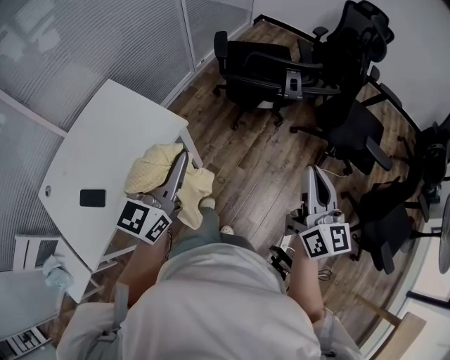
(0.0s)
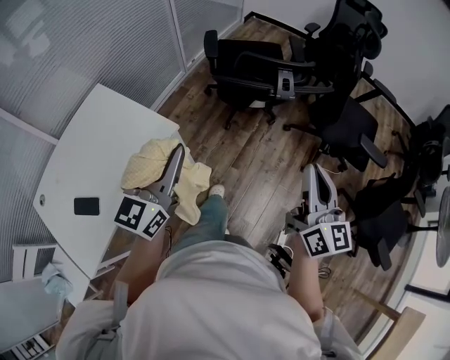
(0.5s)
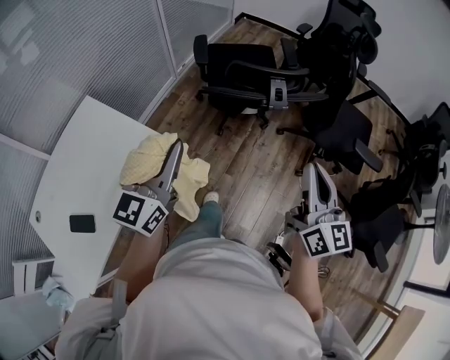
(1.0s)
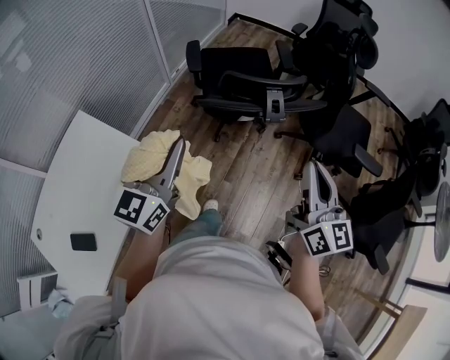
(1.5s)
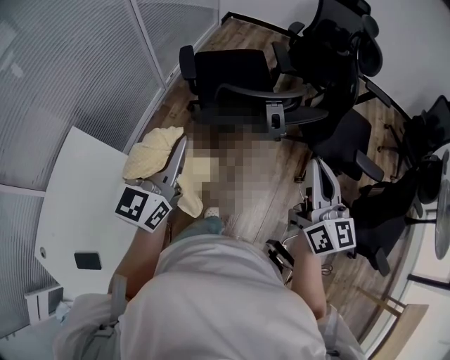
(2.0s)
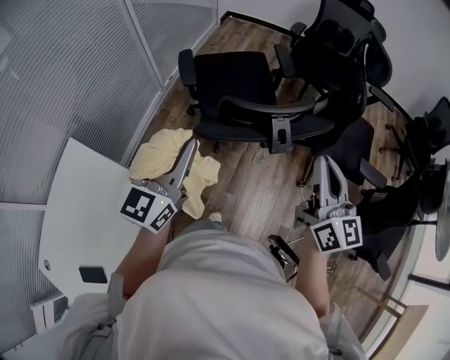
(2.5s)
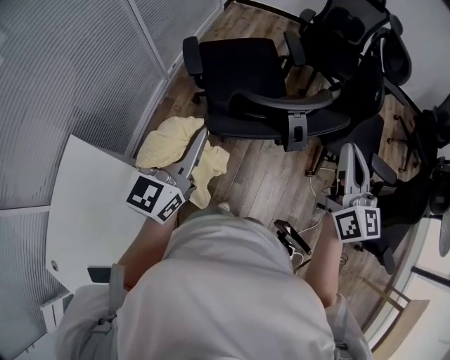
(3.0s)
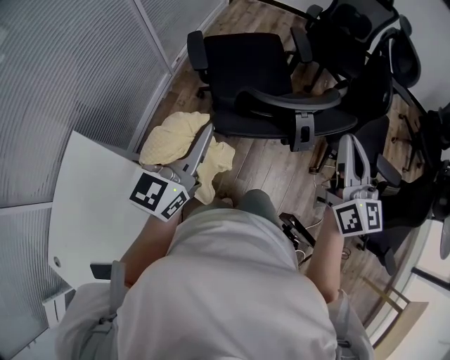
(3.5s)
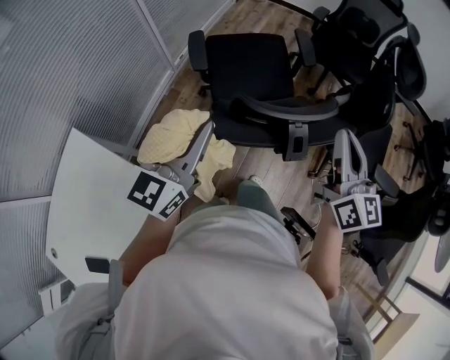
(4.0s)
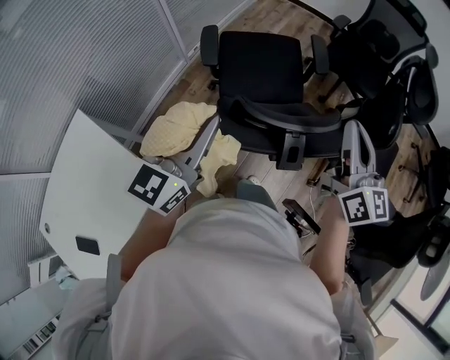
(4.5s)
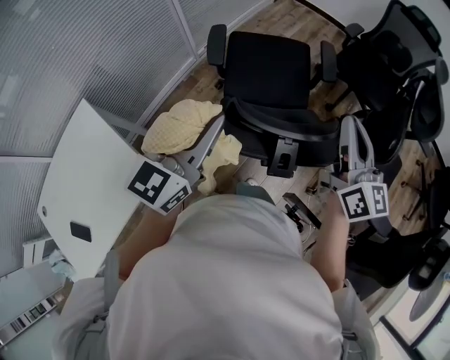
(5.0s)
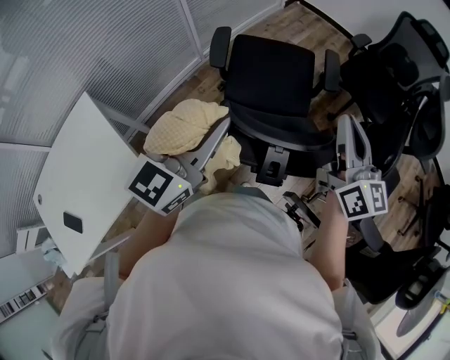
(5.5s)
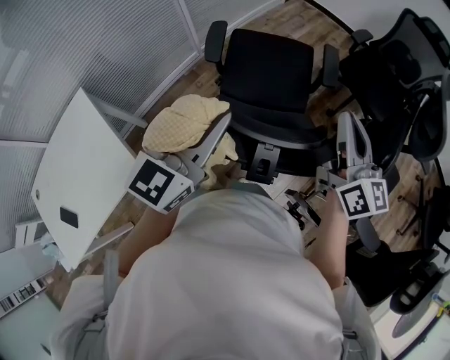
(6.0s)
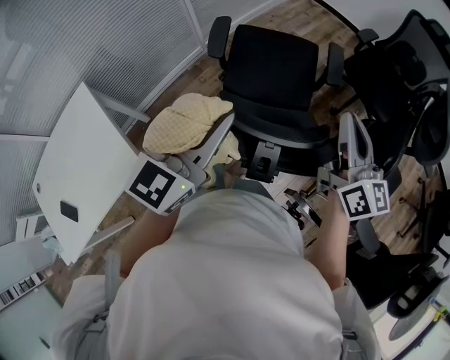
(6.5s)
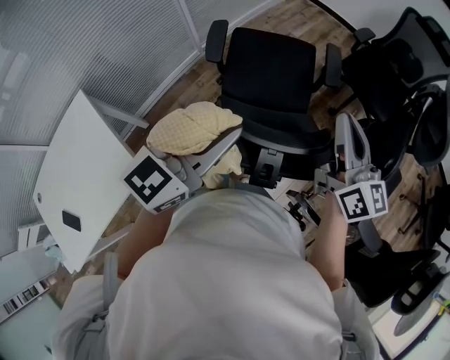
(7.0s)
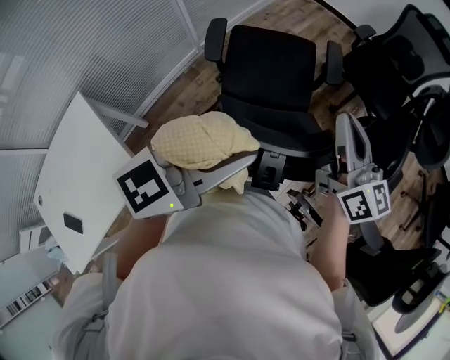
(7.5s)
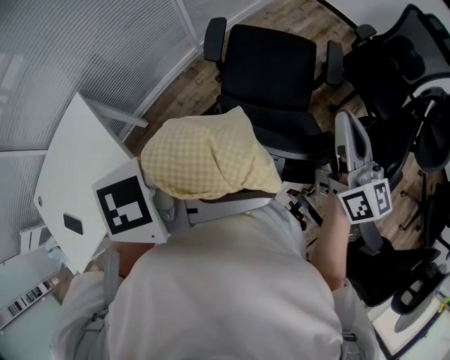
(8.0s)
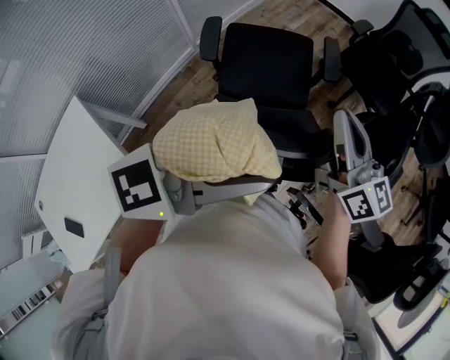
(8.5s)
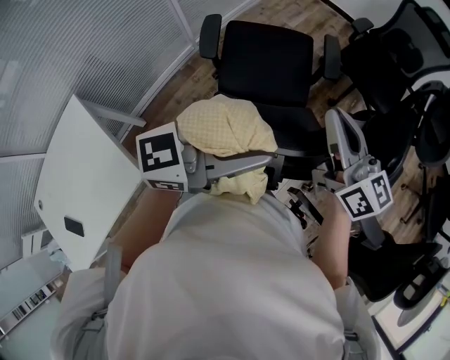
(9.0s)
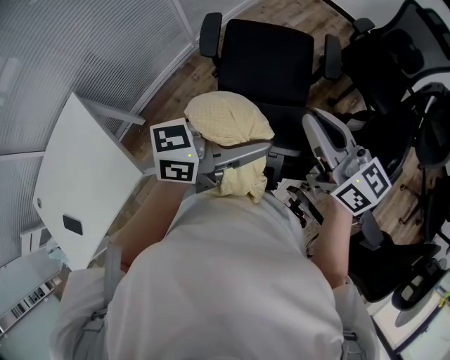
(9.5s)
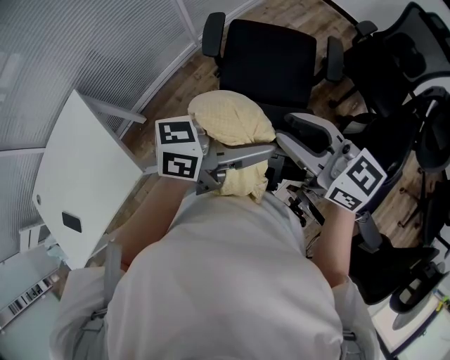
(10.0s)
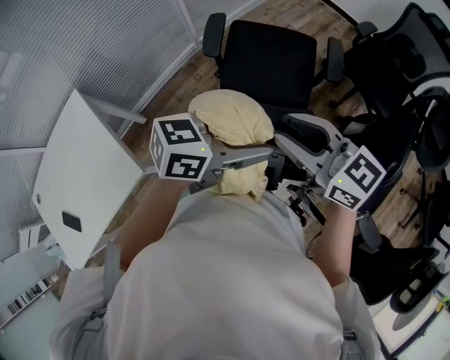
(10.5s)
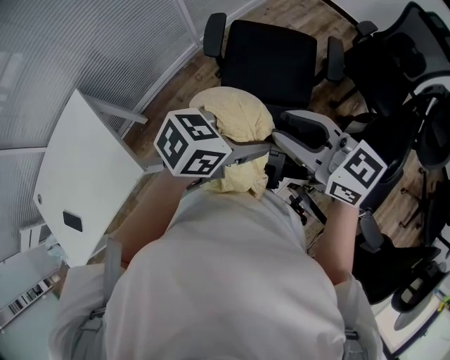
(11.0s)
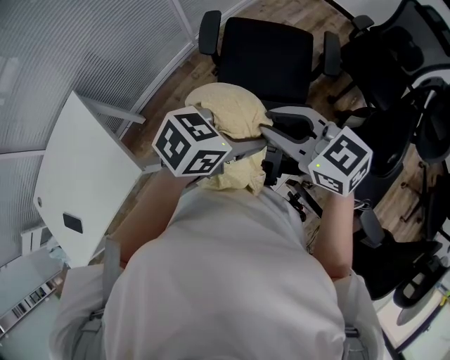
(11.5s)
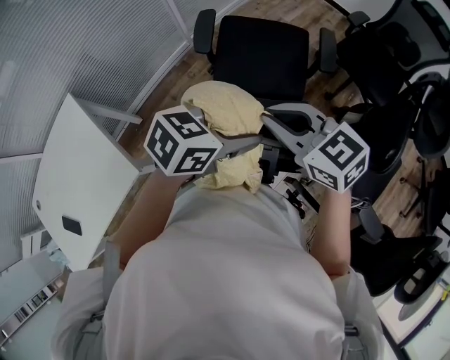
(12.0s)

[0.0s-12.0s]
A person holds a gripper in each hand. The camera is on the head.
0.0s to 2.0s: Both grippers move forward, about 25 cm.
2.0s to 4.0s: The grippers both shift forward by roughly 15 cm.
4.0s to 6.0s: The right gripper is displaced forward by some 15 cm, and rotates roughly 20 degrees. The left gripper heads to the right and forward, covering some 15 cm.
6.0s to 8.0s: The left gripper is displaced to the right, upward and backward by roughly 15 cm, and swivels about 40 degrees.
8.0s to 10.0s: The left gripper travels downward by roughly 15 cm, and changes its angle by about 40 degrees; the right gripper moves approximately 15 cm, rotates approximately 40 degrees, and opens its fingers.
10.0s to 12.0s: The left gripper goes some 5 cm downward, points its fingers approximately 30 degrees further downward, and opens; the right gripper closes up.

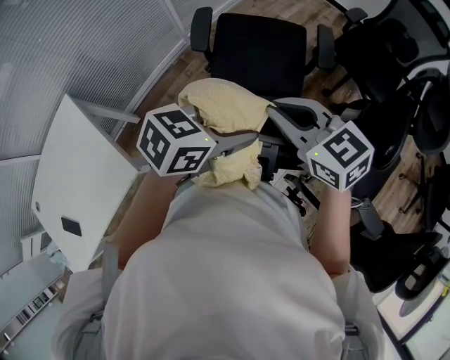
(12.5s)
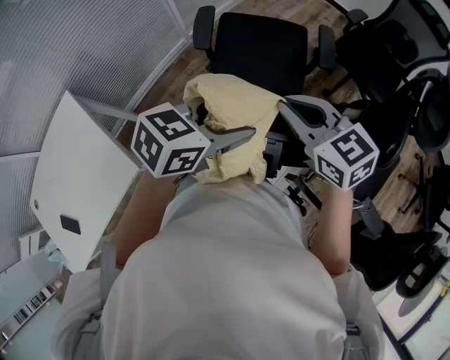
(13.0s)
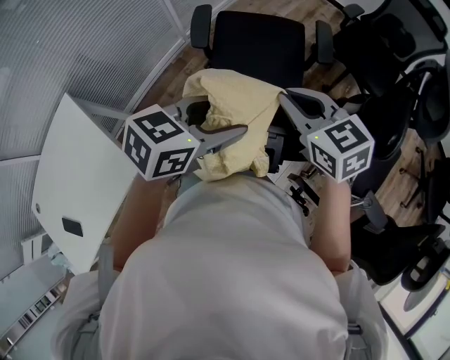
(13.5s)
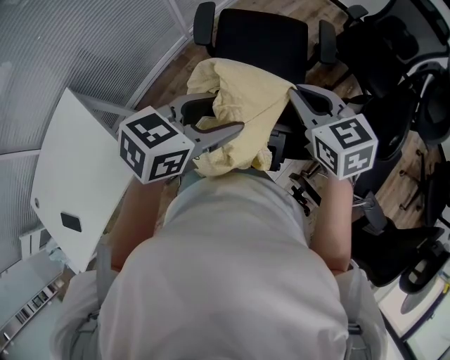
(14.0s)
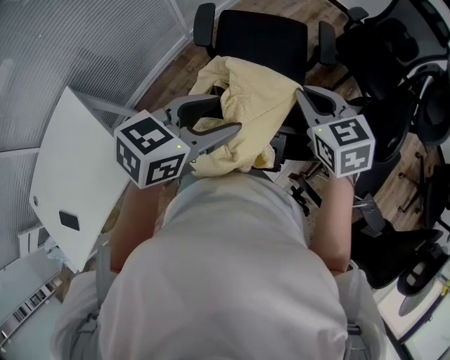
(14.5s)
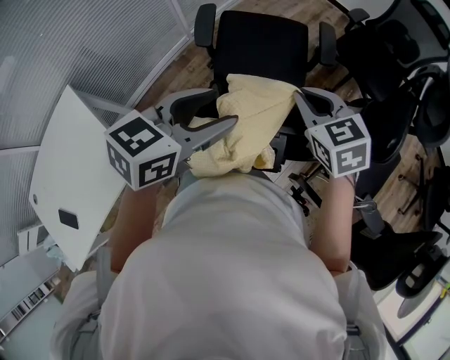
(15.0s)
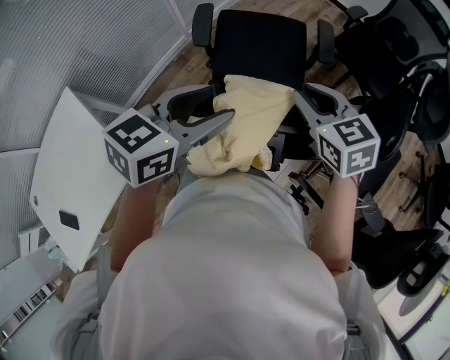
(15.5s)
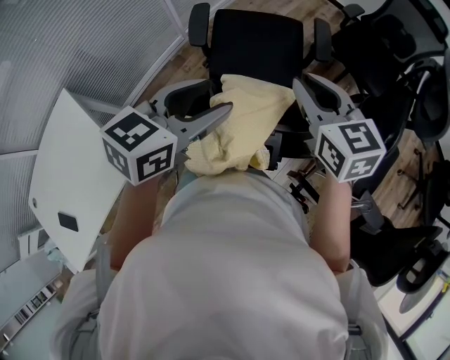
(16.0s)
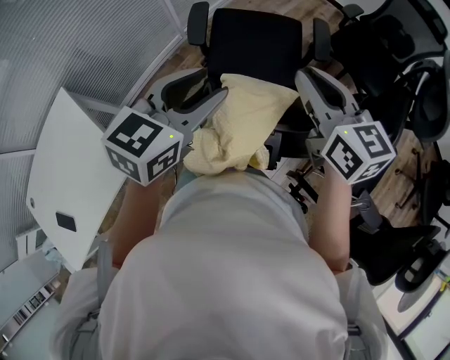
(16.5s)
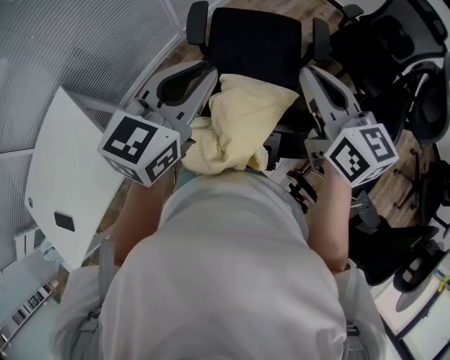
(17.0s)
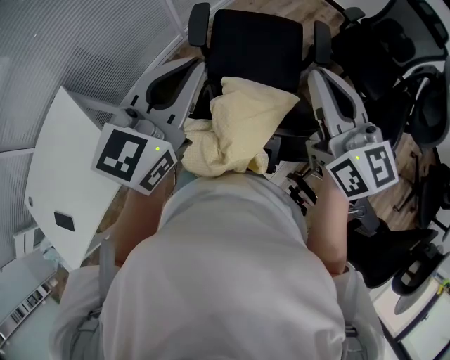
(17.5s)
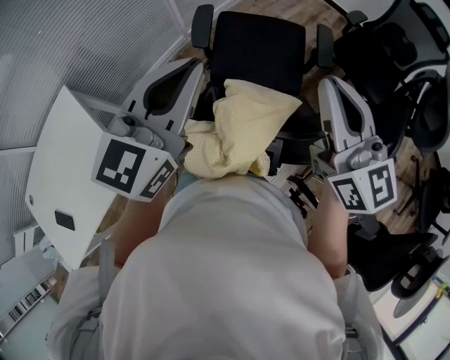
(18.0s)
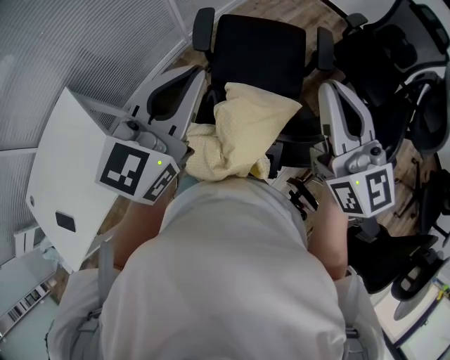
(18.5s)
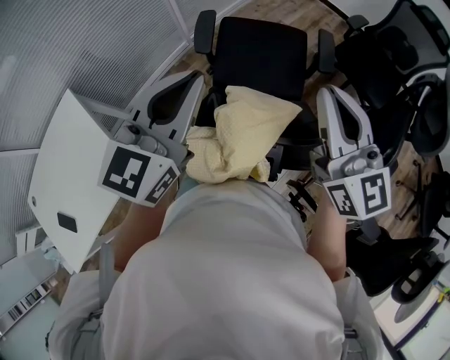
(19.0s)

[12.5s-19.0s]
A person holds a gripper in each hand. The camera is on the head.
12.5s to 14.5s: The right gripper shifts by about 5 cm, and rotates some 20 degrees. The left gripper moves roughly 5 cm.
14.5s to 17.0s: The left gripper is displaced upward and forward by approximately 10 cm, rotates roughly 30 degrees, and closes its fingers; the right gripper shifts roughly 10 cm upward, and turns by approximately 30 degrees.
17.0s to 19.0s: The right gripper shifts some 5 cm upward, and changes its angle by about 20 degrees.

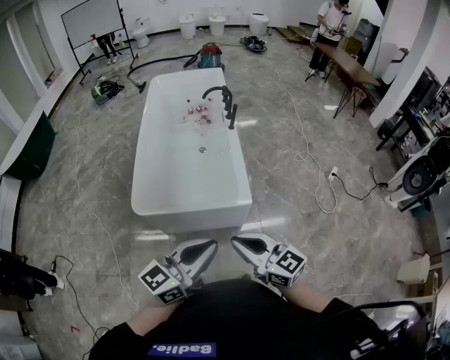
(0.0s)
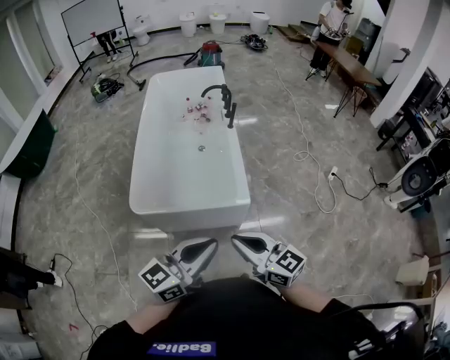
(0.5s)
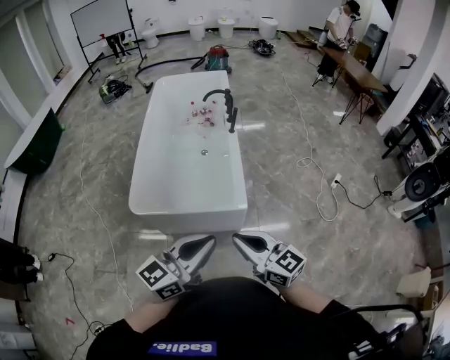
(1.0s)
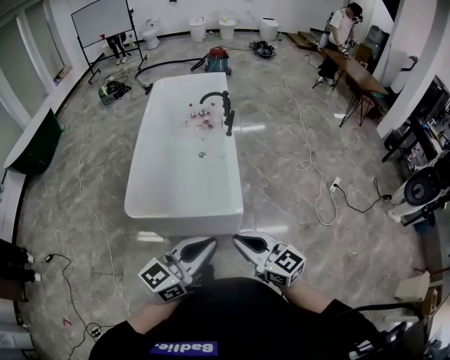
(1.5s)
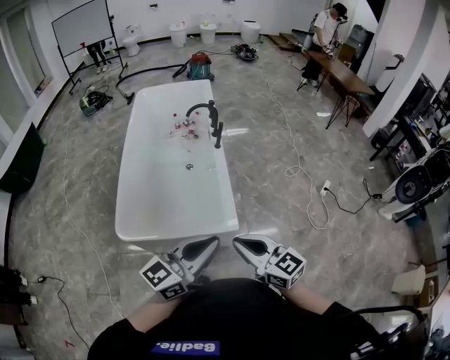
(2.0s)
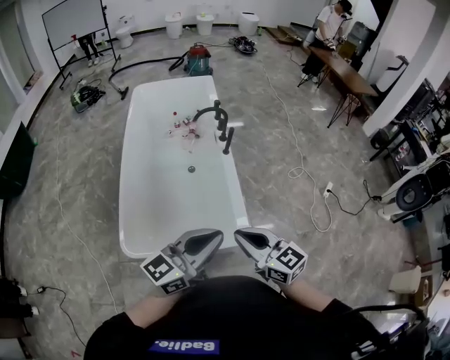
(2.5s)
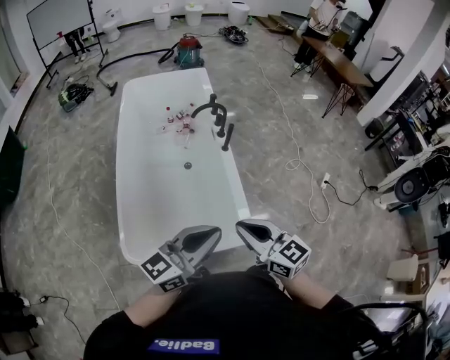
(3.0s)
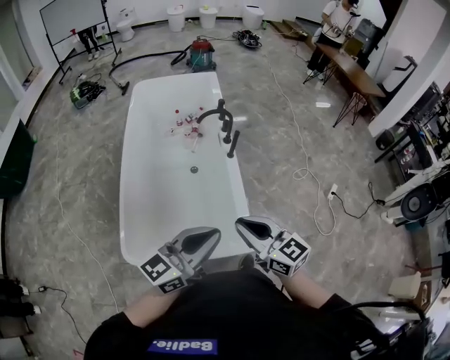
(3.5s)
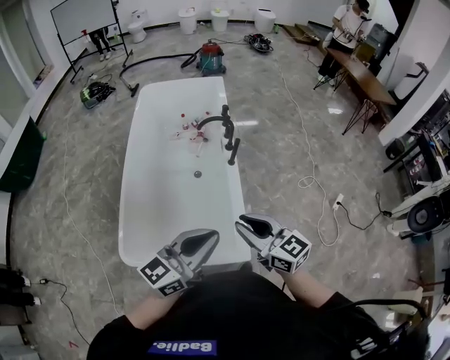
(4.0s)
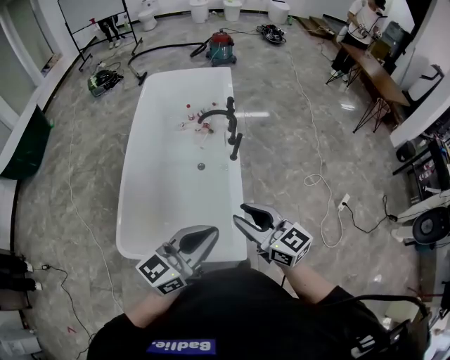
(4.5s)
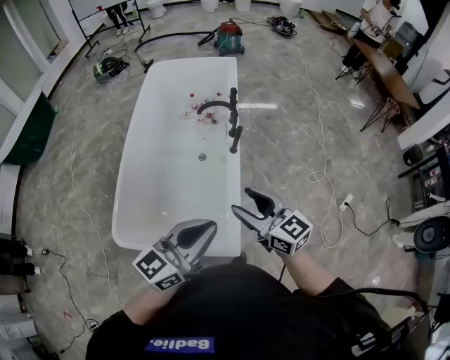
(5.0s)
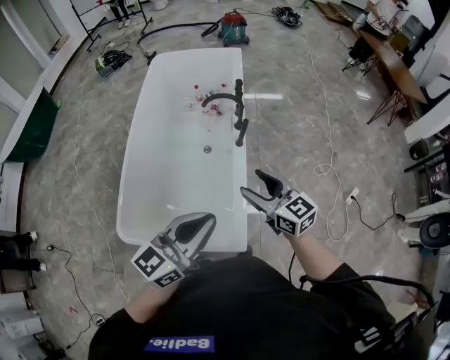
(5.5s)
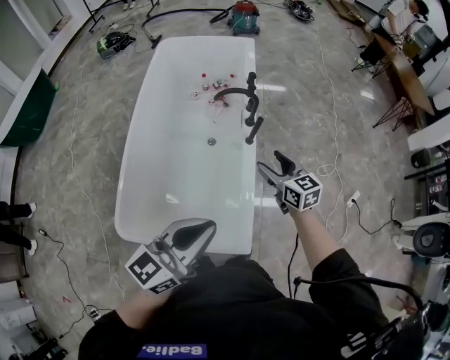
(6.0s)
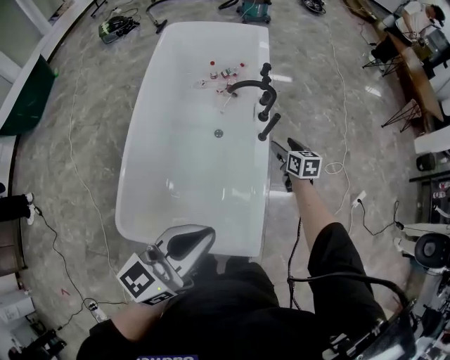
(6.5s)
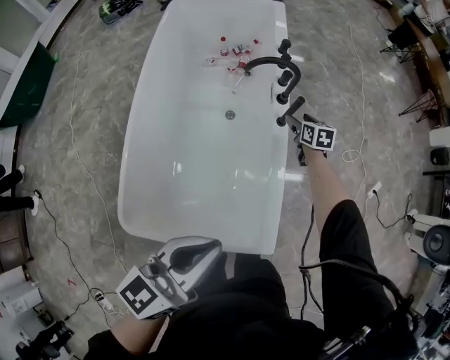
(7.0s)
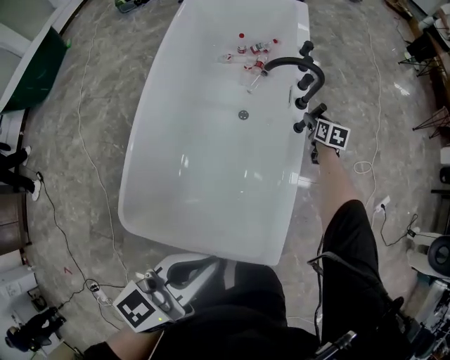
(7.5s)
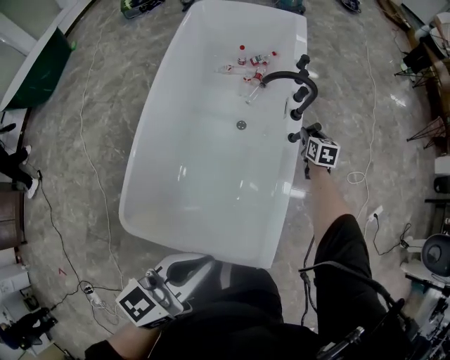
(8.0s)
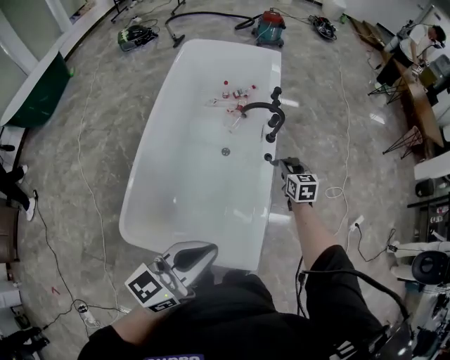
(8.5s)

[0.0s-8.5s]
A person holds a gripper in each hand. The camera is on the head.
0.0s to 2.0s: The two grippers go about 15 cm forward and to the right.
2.0s to 4.0s: The two grippers go about 25 cm forward.
4.0s to 6.5s: The right gripper travels forward and downward by roughly 50 cm, swivels about 30 degrees, and opens its fingers; the left gripper moves forward and downward, about 15 cm.
6.5s to 8.5s: The left gripper goes downward and returns, approximately 10 cm each way. Meanwhile the right gripper travels downward and back again, approximately 15 cm each way, and closes up.
